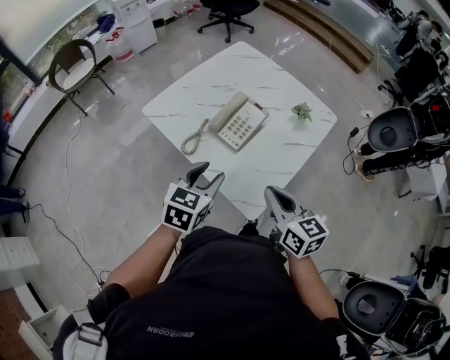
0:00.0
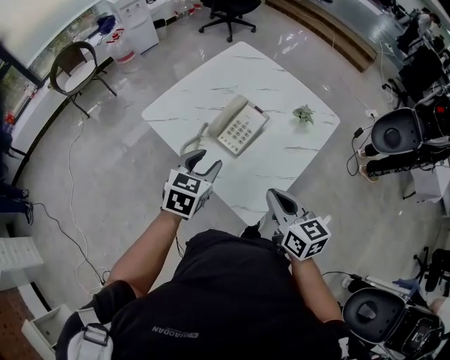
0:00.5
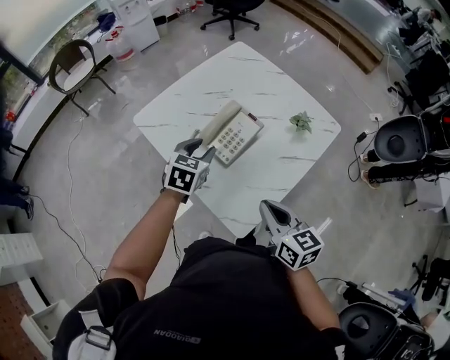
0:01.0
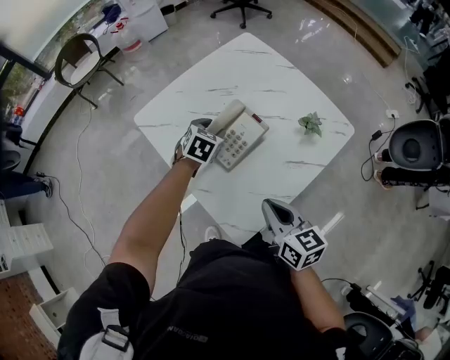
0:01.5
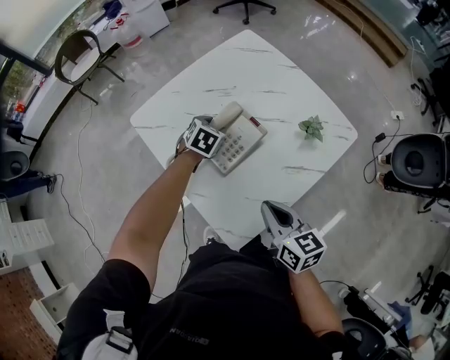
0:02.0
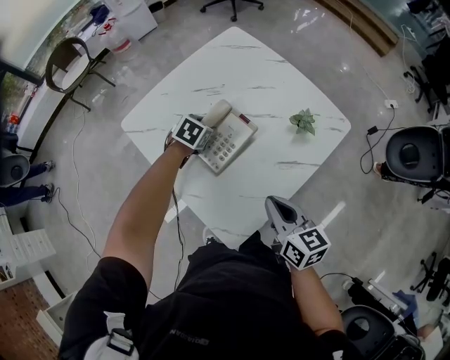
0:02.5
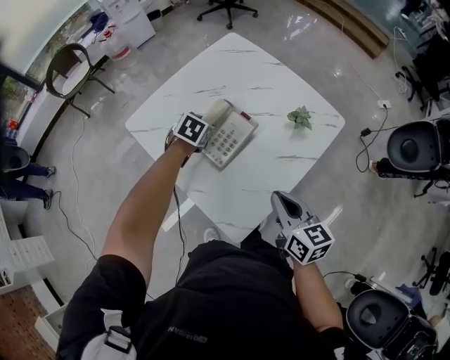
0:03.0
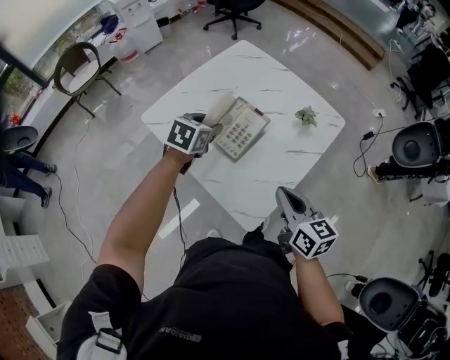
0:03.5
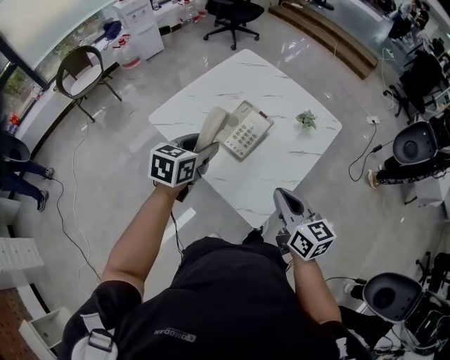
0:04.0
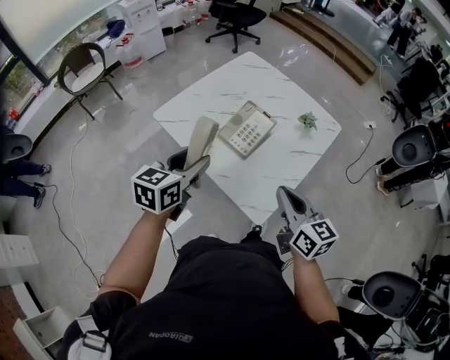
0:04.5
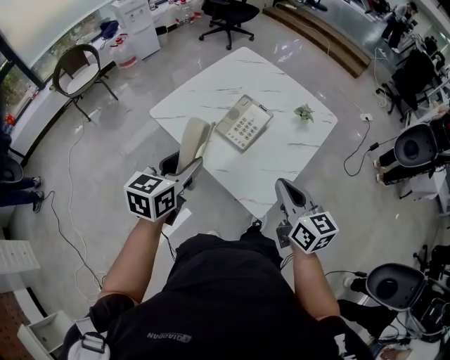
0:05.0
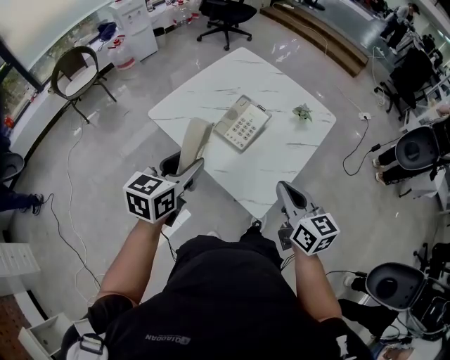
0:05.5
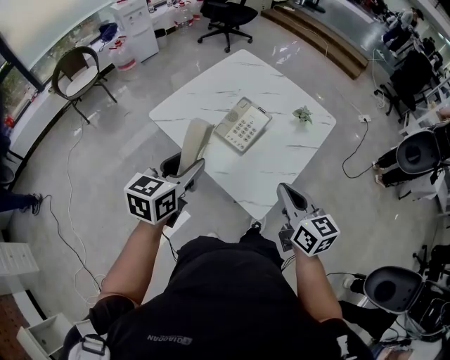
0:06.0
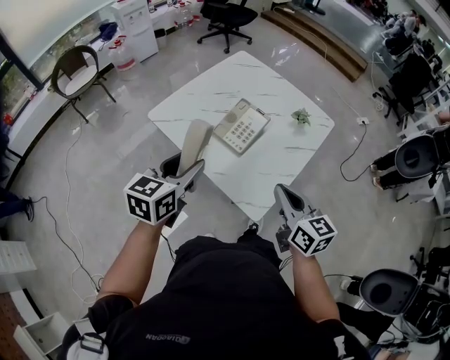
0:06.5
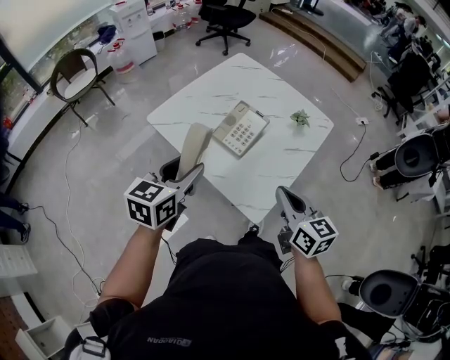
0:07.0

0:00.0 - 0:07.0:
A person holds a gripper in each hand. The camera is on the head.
0:00.0 - 0:02.0: The left gripper is displaced forward and downward by about 35 cm, and swivels approximately 30 degrees, while the right gripper is displaced forward, to the right and downward by approximately 15 cm.
0:02.0 - 0:03.5: The left gripper is displaced upward and backward by some 15 cm. Meanwhile the right gripper moves backward and upward, some 10 cm.
0:03.5 - 0:05.0: The left gripper heads backward, upward and to the left, covering approximately 25 cm, and swivels about 20 degrees. The right gripper is displaced backward and to the left by roughly 10 cm.
0:05.0 - 0:07.0: The grippers stay close to where they were, moving slightly.

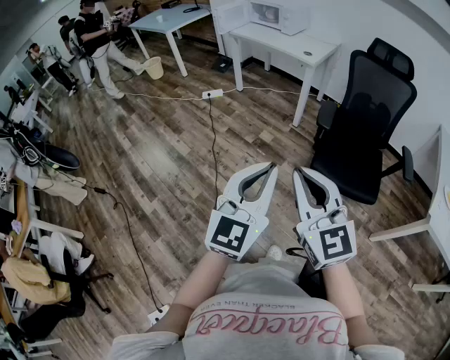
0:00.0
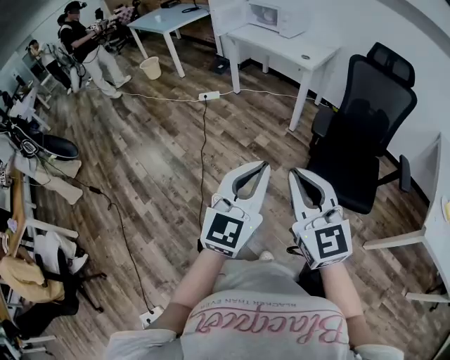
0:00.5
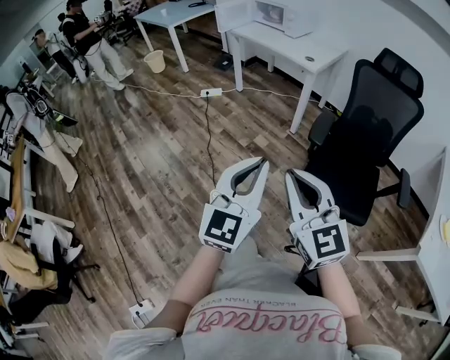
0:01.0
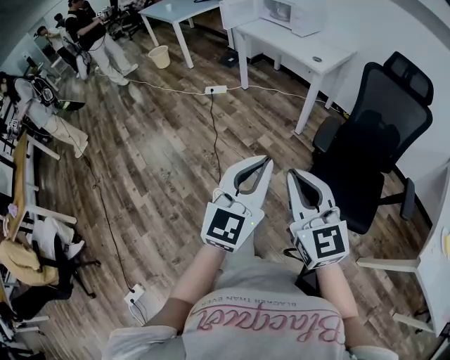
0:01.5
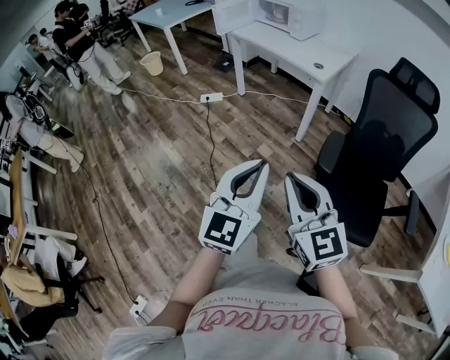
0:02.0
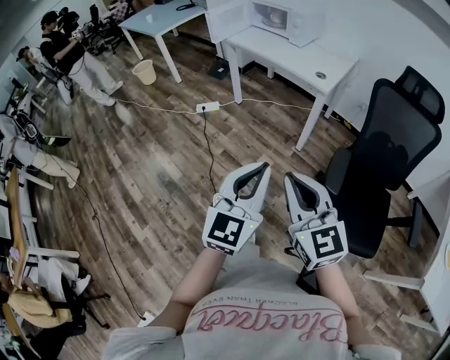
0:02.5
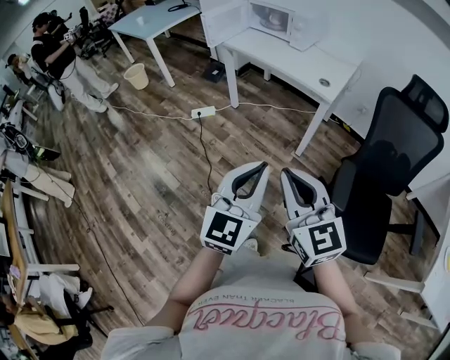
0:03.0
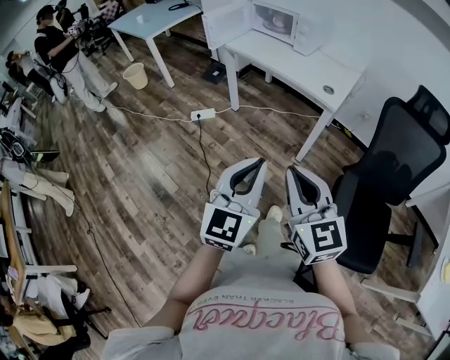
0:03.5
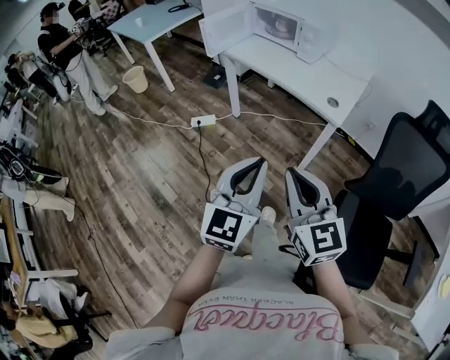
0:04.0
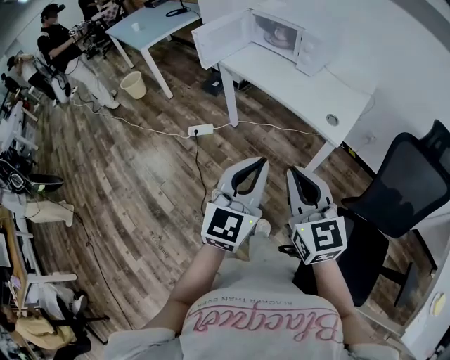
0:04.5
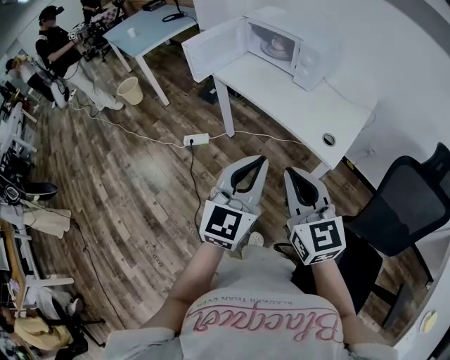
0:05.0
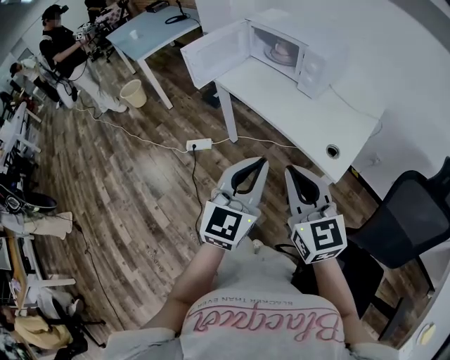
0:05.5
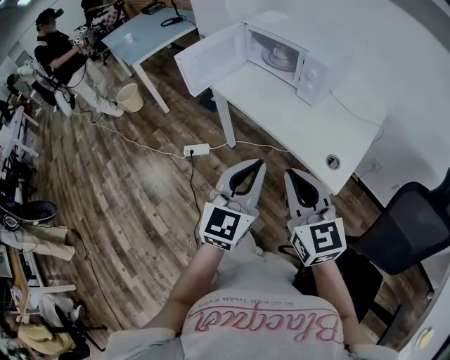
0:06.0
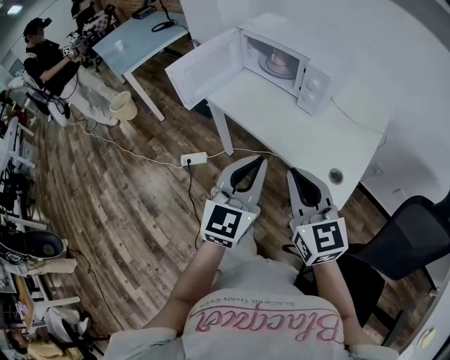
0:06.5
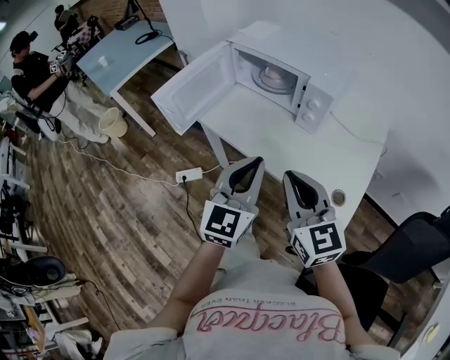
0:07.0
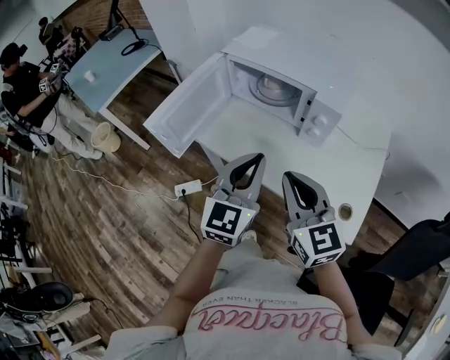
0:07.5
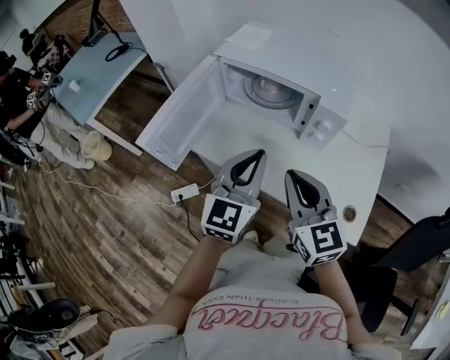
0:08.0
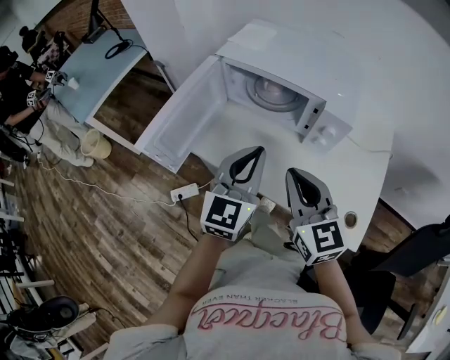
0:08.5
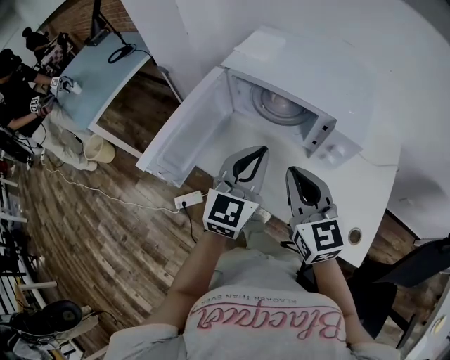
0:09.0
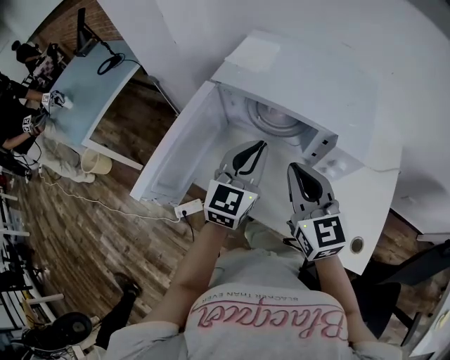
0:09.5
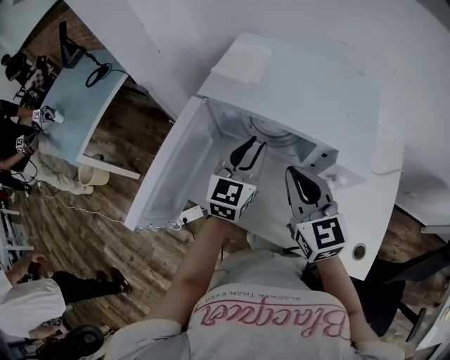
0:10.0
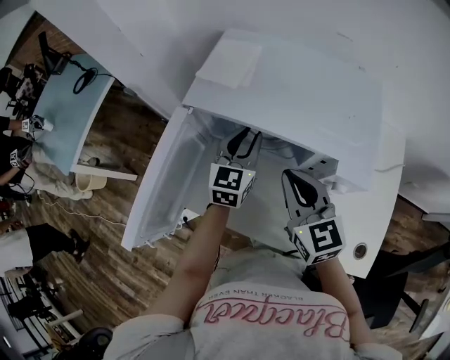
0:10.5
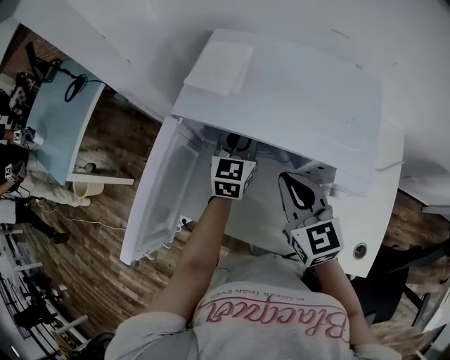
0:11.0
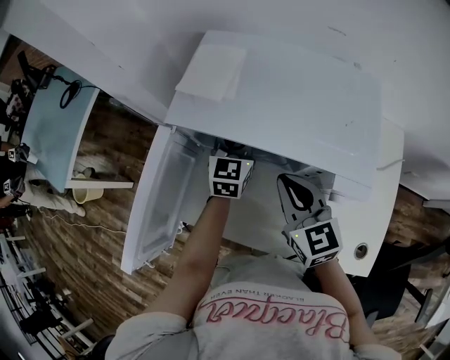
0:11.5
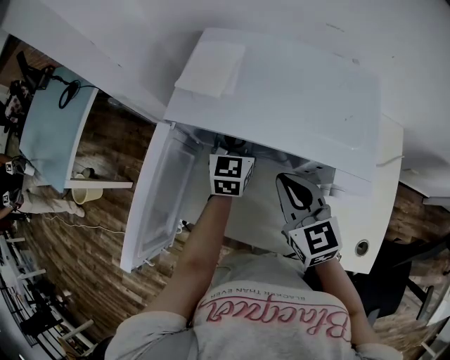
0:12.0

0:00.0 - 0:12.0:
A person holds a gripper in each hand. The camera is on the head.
0:00.0 - 0:02.0: The two grippers go approximately 25 cm forward.
0:02.0 - 0:04.0: The grippers both shift forward by about 35 cm.
0:04.0 - 0:06.0: The grippers both shift forward by approximately 30 cm.
0:06.0 - 0:08.0: Both grippers move forward, roughly 30 cm.
0:08.0 - 0:10.0: The grippers both shift forward by some 20 cm.
0:10.0 - 0:12.0: The left gripper moves forward and downward, about 15 cm. Meanwhile the right gripper moves some 5 cm.

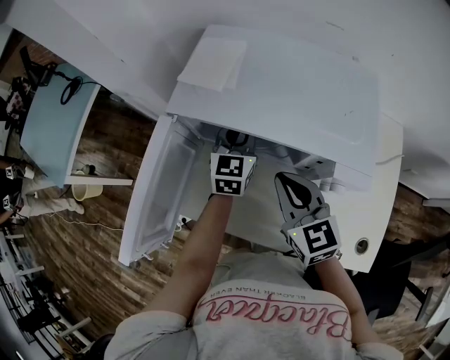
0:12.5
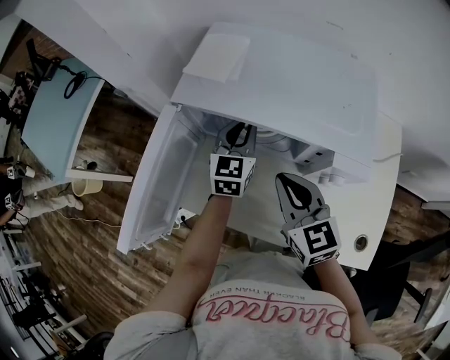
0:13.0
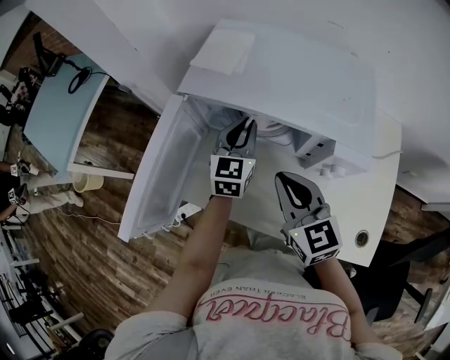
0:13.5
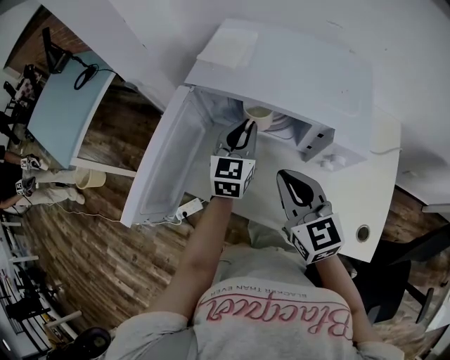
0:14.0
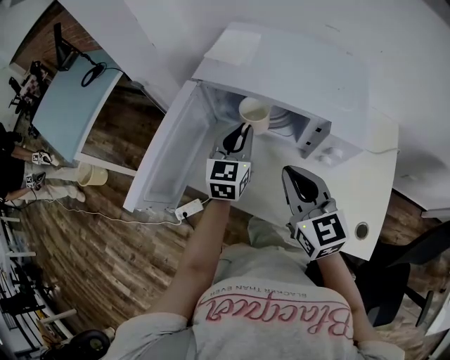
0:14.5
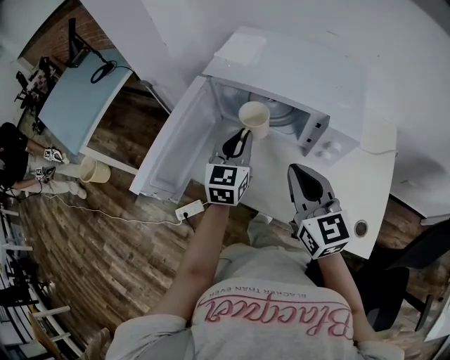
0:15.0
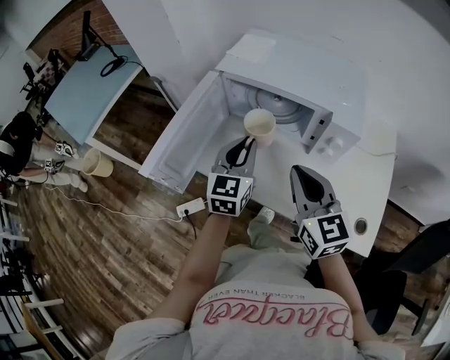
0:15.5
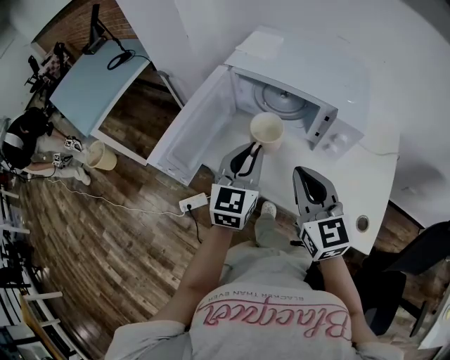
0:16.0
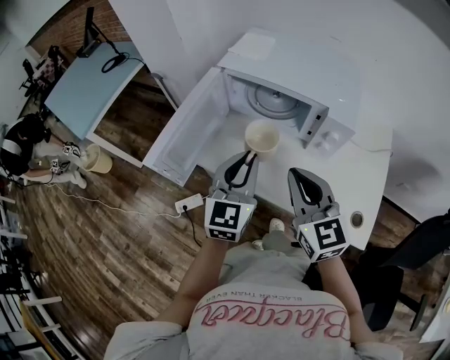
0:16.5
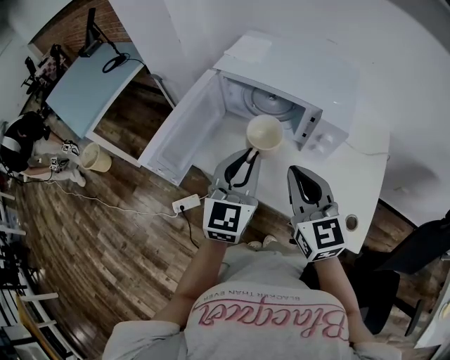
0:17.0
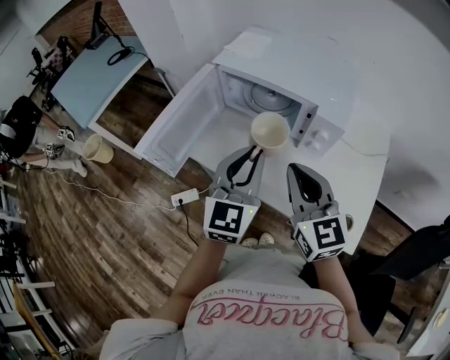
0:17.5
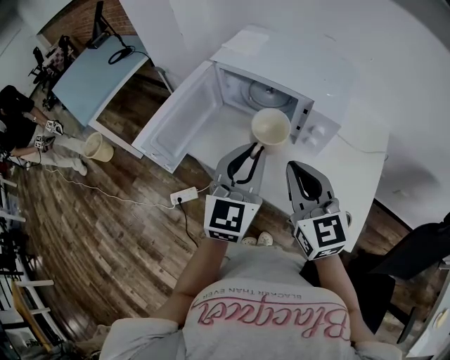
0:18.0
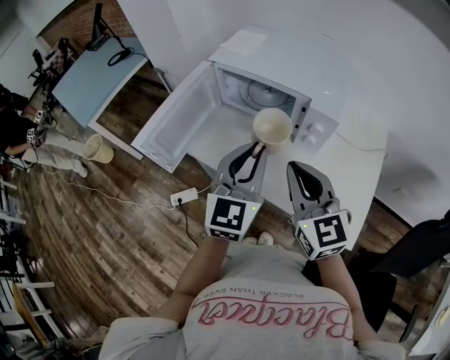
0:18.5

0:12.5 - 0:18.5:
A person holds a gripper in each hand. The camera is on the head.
0:12.5 - 0:14.5: The grippers both shift backward by approximately 10 cm.
0:14.5 - 0:16.5: The right gripper is displaced backward by roughly 10 cm. The left gripper shifts approximately 20 cm backward and upward.
0:16.5 - 0:18.5: The grippers both shift to the right by about 5 cm.

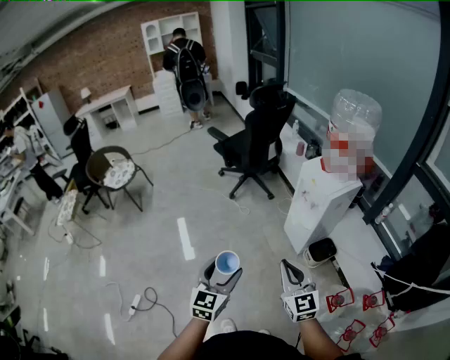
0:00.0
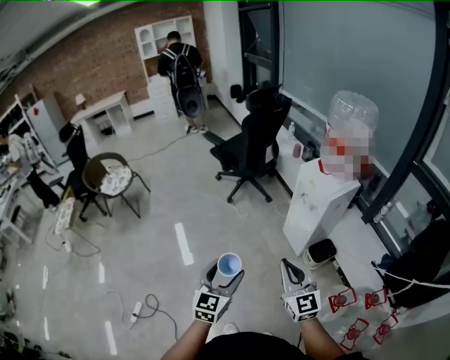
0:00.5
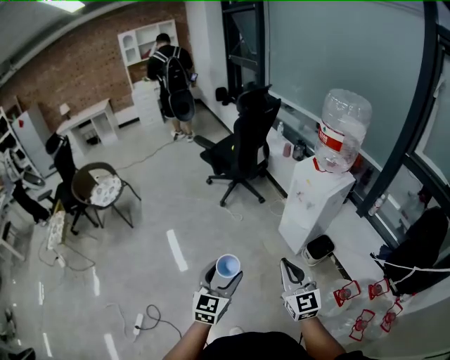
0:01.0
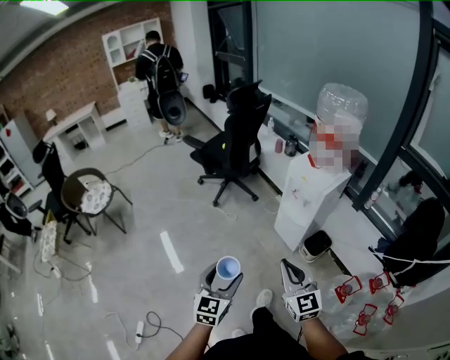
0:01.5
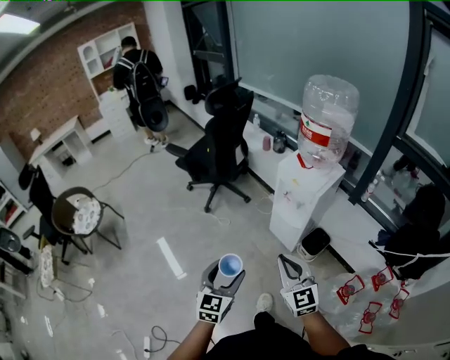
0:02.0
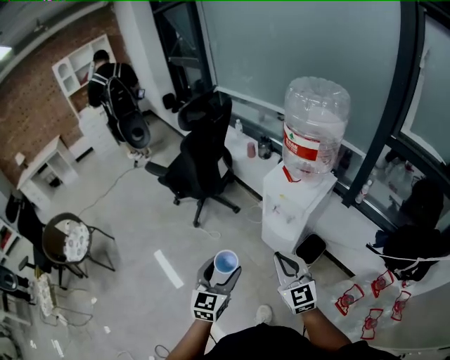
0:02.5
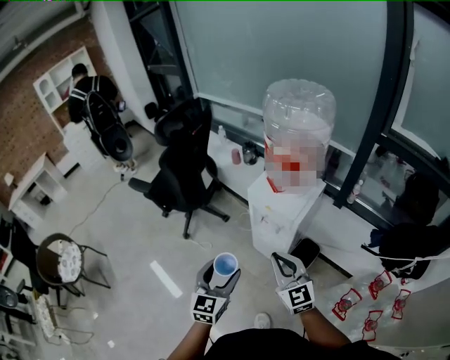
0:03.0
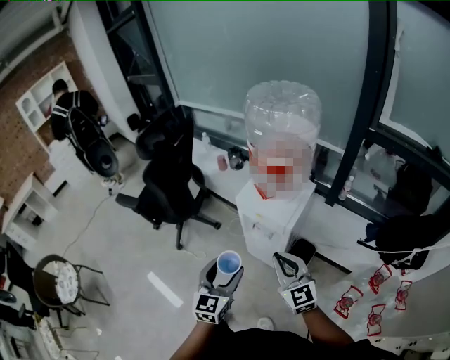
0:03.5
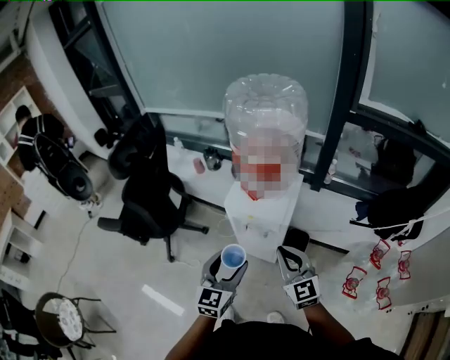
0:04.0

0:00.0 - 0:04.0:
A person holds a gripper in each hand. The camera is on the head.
0:00.0 - 0:02.0: The grippers both shift forward by some 10 cm.
0:02.0 - 0:04.0: The left gripper ends up roughly 30 cm from where it was, and rotates about 30 degrees, while the right gripper shifts by approximately 25 cm, and turns by some 30 degrees.
